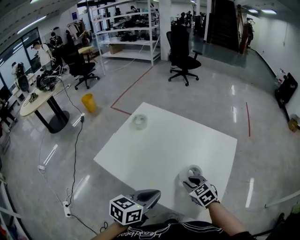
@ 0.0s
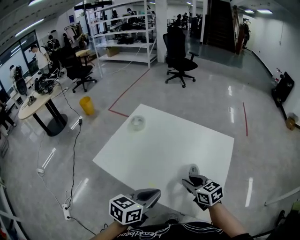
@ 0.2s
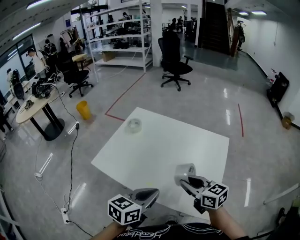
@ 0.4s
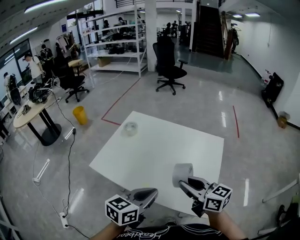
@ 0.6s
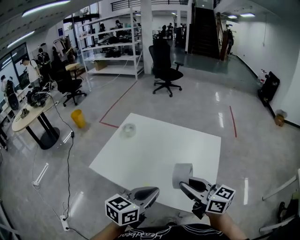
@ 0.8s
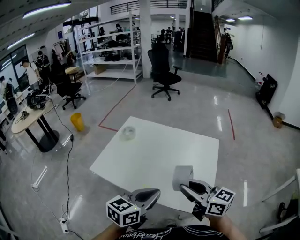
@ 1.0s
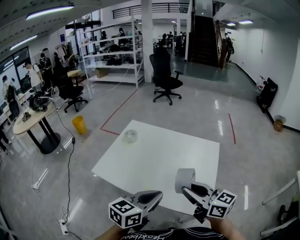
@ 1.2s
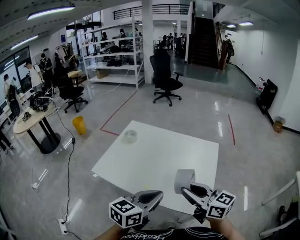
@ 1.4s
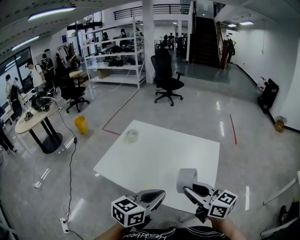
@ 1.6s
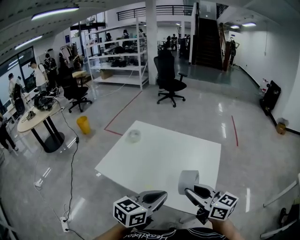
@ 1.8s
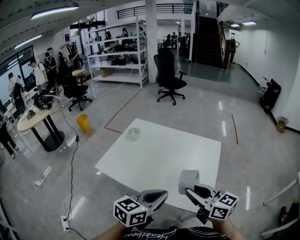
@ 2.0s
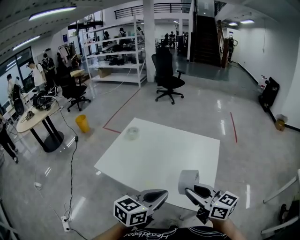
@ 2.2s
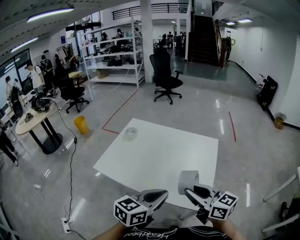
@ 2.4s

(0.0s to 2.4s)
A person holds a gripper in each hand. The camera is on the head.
0.0s - 1.2s: The left gripper travels upward by about 10 cm. Meanwhile the right gripper heads upward and backward, covering about 25 cm, and tilts its fingers approximately 40 degrees upward.
1.2s - 2.4s: The grippers move only a little.

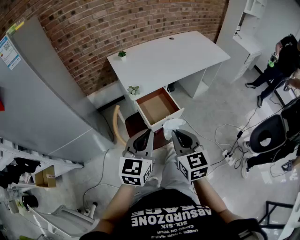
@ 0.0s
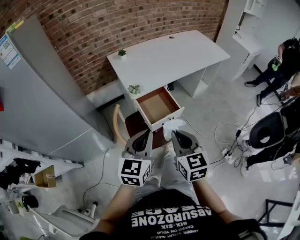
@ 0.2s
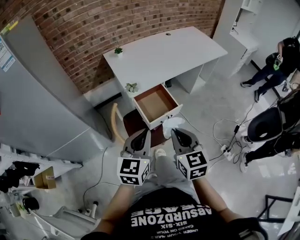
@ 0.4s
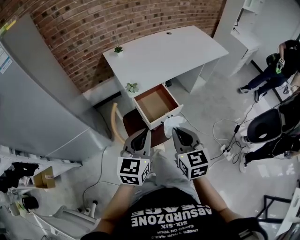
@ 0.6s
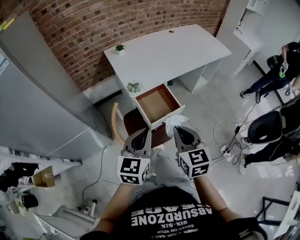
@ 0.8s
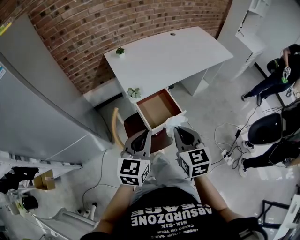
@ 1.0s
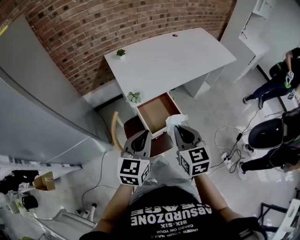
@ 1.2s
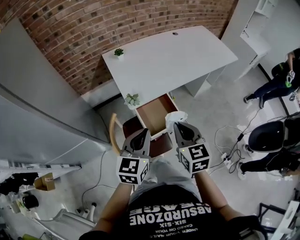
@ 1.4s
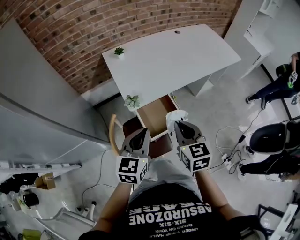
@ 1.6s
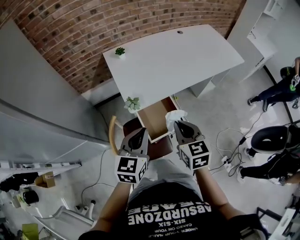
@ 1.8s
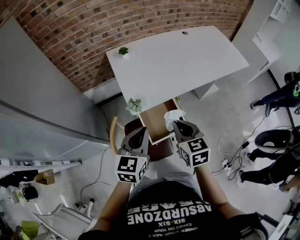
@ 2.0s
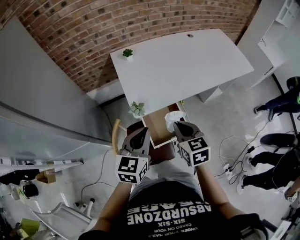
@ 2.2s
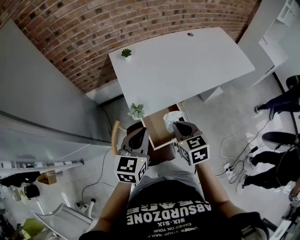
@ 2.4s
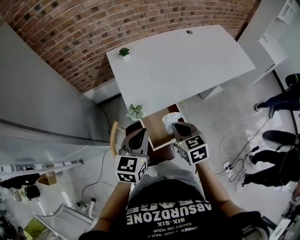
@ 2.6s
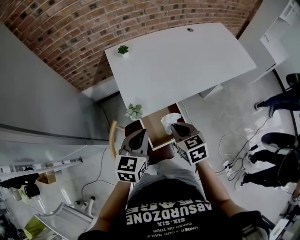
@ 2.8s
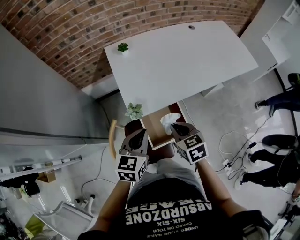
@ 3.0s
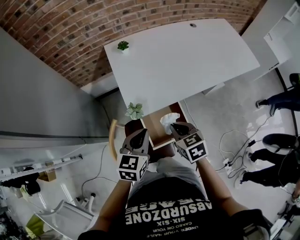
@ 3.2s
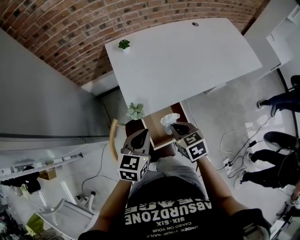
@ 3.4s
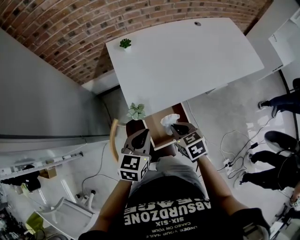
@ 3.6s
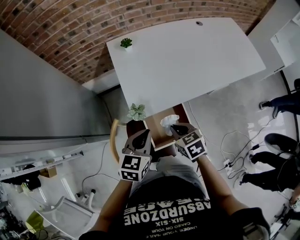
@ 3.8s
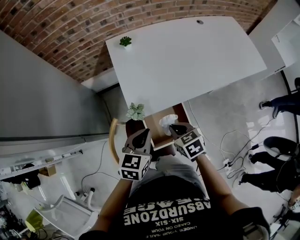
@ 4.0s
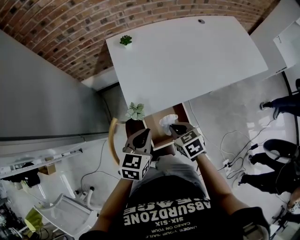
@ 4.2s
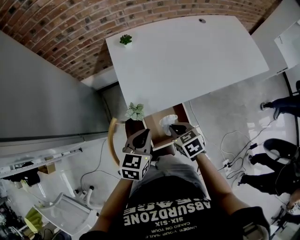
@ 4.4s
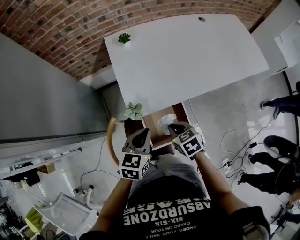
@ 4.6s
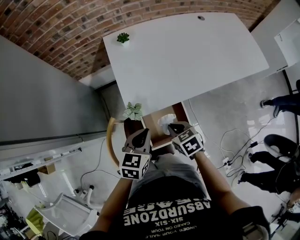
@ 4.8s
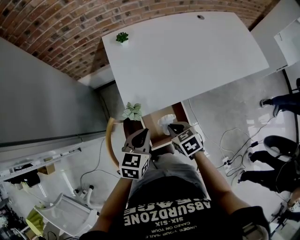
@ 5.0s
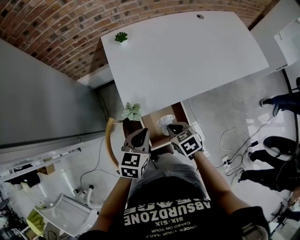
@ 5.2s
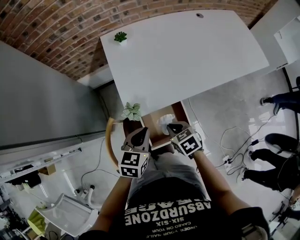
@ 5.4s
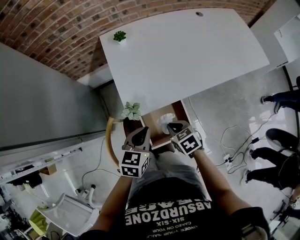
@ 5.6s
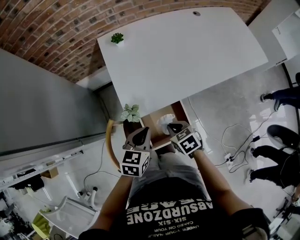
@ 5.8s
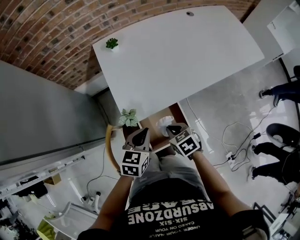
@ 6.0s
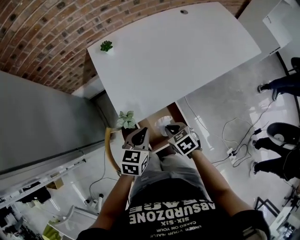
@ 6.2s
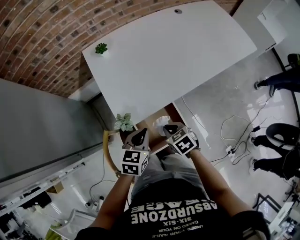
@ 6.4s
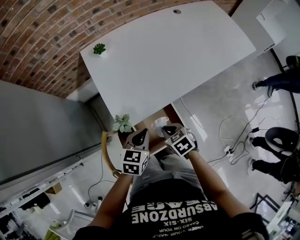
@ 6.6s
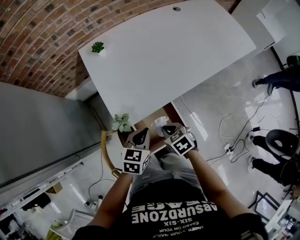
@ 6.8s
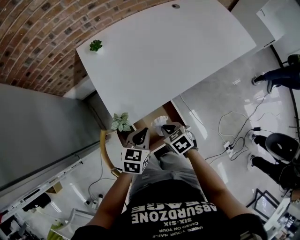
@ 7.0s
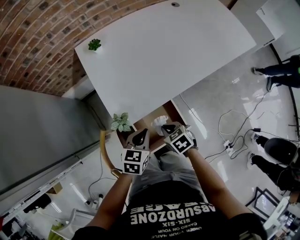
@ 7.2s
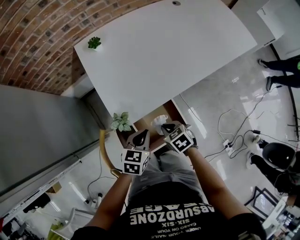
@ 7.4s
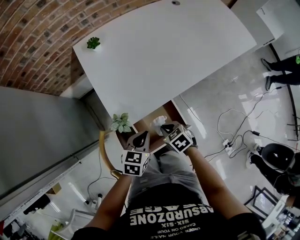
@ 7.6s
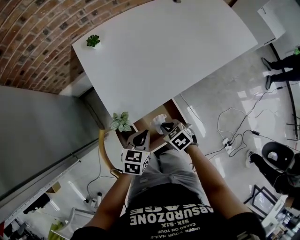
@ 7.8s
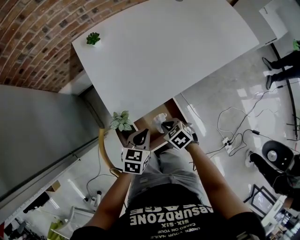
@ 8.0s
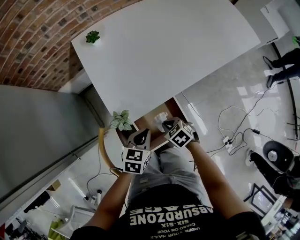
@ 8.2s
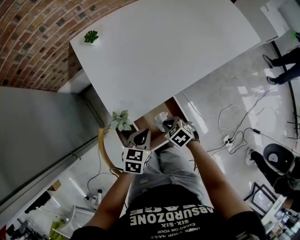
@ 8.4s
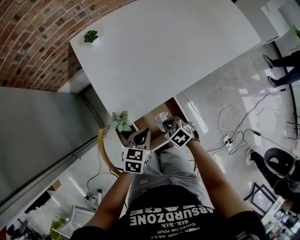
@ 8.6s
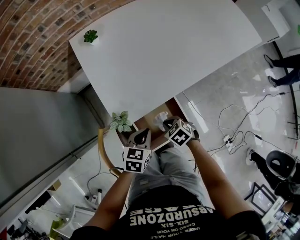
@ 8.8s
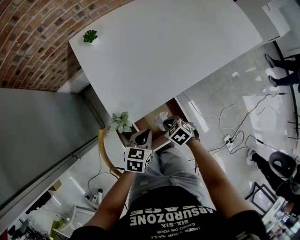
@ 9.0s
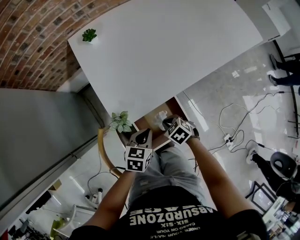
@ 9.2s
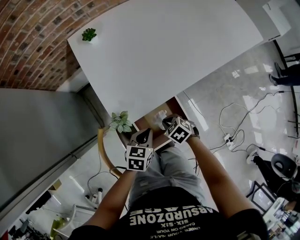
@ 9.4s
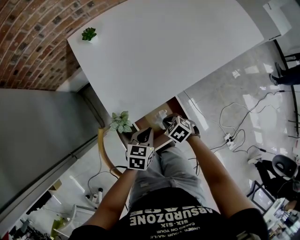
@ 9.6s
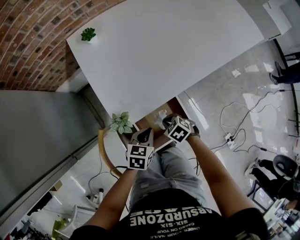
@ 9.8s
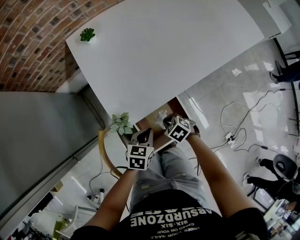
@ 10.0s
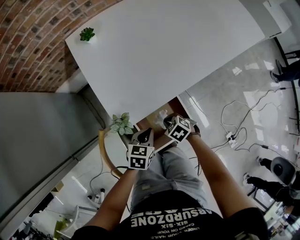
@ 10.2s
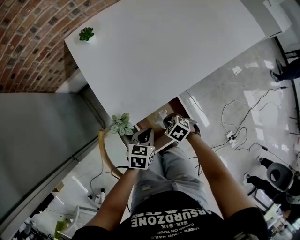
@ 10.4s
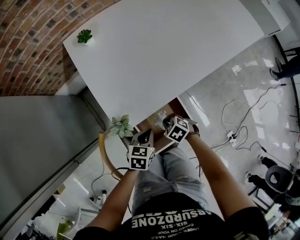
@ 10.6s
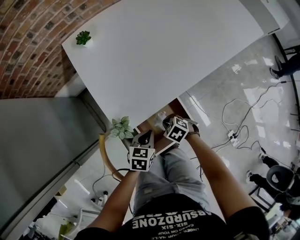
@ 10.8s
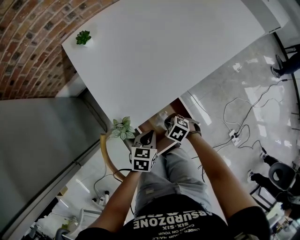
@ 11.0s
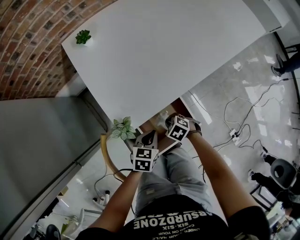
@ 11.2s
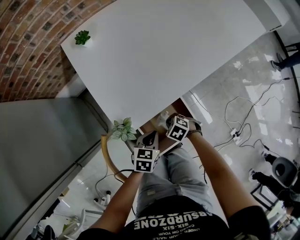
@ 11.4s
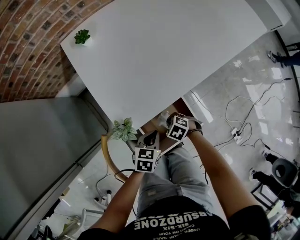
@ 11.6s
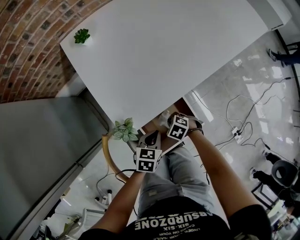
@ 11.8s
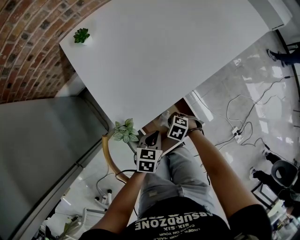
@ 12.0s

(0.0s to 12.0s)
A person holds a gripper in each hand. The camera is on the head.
0.0s - 1.6s: Both grippers move forward, roughly 20 cm.
1.6s - 3.0s: Both grippers travel together forward and downward, approximately 15 cm. The right gripper turns by roughly 20 degrees.
3.0s - 4.4s: The right gripper goes about 10 cm downward, while the left gripper goes about 5 cm downward.
4.4s - 6.0s: The left gripper changes place by about 5 cm.
6.0s - 7.6s: Both grippers move downward, roughly 5 cm.
7.6s - 9.0s: The right gripper moves downward, approximately 5 cm.
9.0s - 10.4s: The grippers stay close to where they were, moving slightly.
10.4s - 12.0s: The right gripper moves downward, about 5 cm.

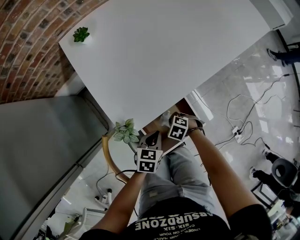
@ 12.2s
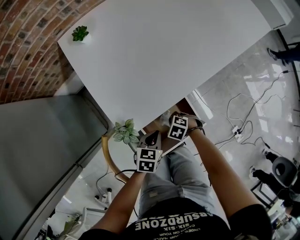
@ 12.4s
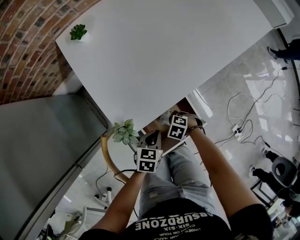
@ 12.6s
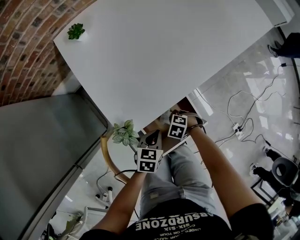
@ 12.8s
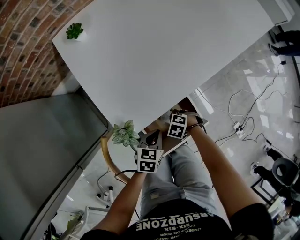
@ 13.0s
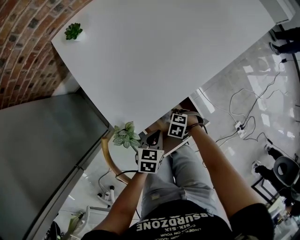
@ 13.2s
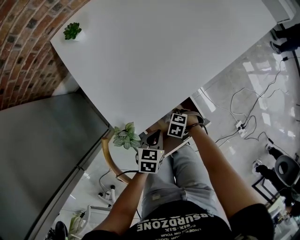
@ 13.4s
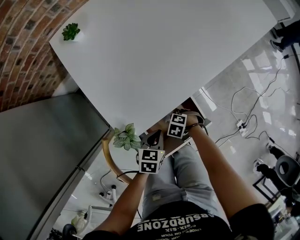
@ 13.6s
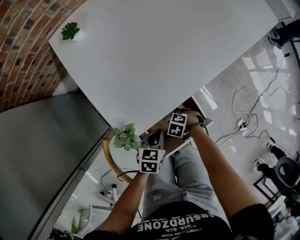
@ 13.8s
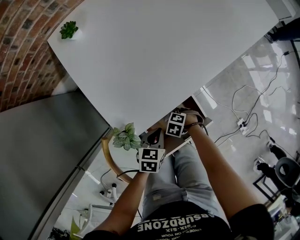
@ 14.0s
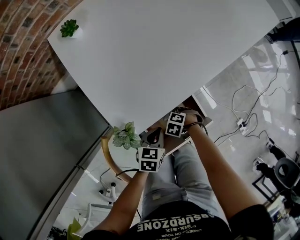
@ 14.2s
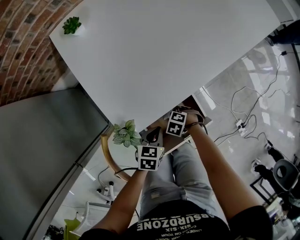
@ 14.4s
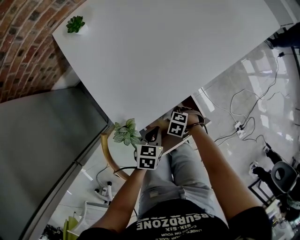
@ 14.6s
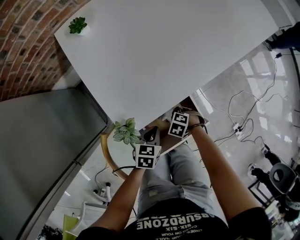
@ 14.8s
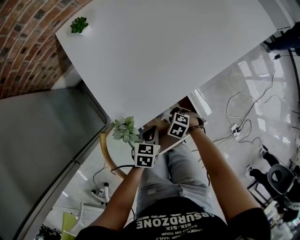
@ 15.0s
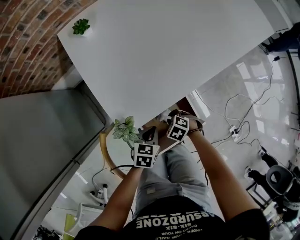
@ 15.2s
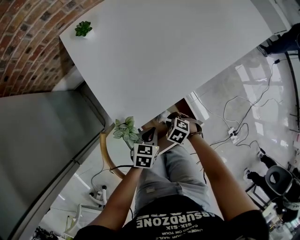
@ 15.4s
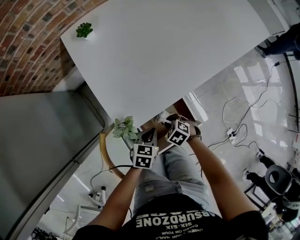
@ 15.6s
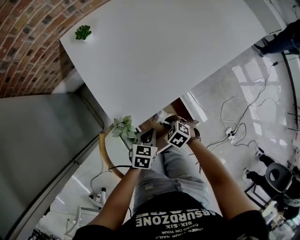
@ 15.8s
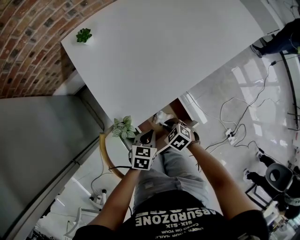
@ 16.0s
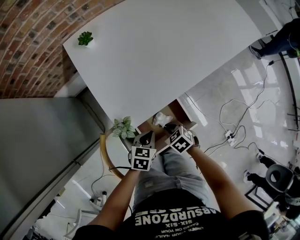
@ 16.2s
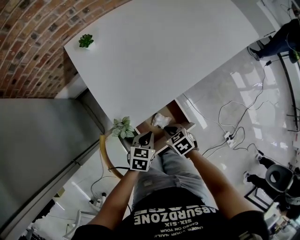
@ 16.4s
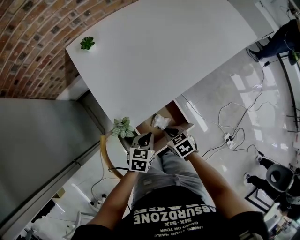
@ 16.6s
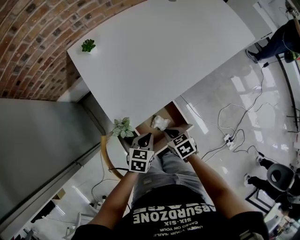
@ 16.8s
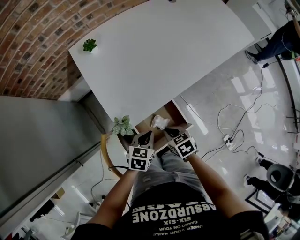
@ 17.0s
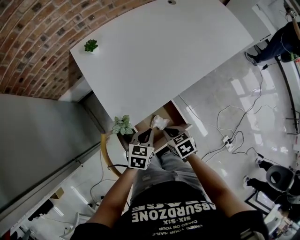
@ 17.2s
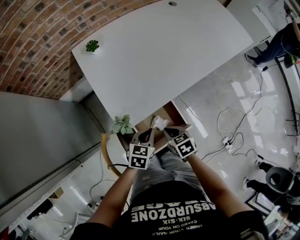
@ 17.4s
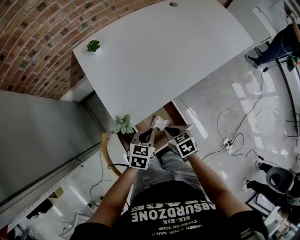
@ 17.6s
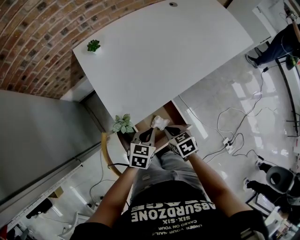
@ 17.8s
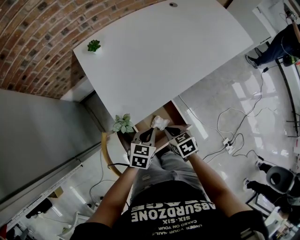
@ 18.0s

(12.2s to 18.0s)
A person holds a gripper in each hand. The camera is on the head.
12.2s - 13.6s: The right gripper heads downward, covering about 5 cm.
13.6s - 15.0s: The grippers make only small movements.
15.0s - 16.6s: The left gripper heads upward, covering some 10 cm. The right gripper is displaced upward by some 15 cm, and turns by about 40 degrees.
16.6s - 18.0s: The right gripper moves upward, roughly 5 cm, while the left gripper shifts by approximately 5 cm.

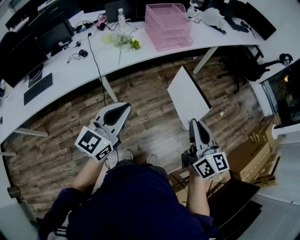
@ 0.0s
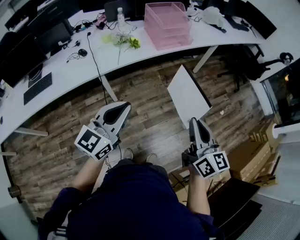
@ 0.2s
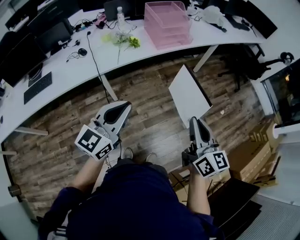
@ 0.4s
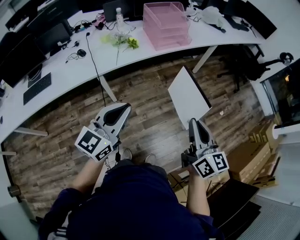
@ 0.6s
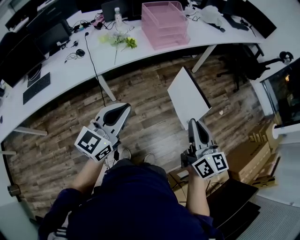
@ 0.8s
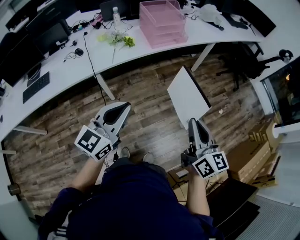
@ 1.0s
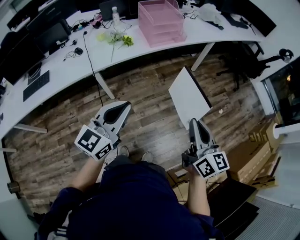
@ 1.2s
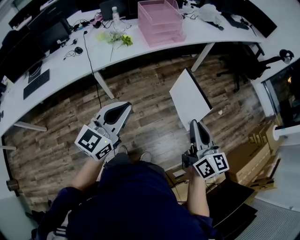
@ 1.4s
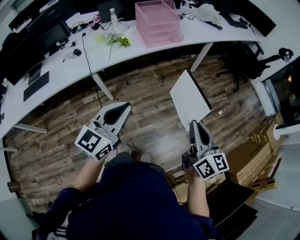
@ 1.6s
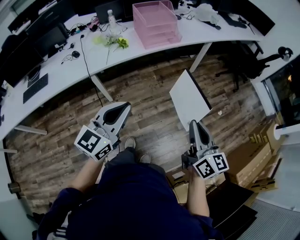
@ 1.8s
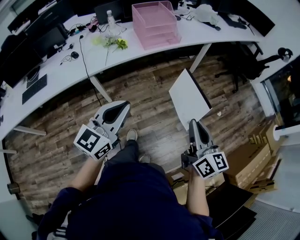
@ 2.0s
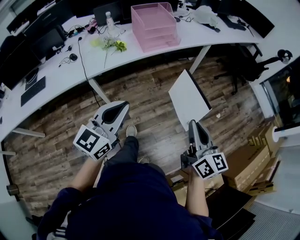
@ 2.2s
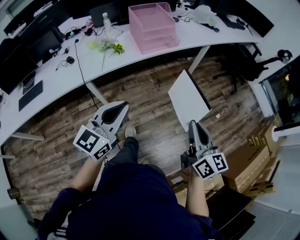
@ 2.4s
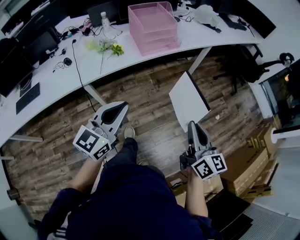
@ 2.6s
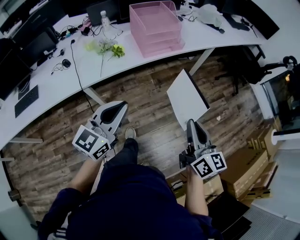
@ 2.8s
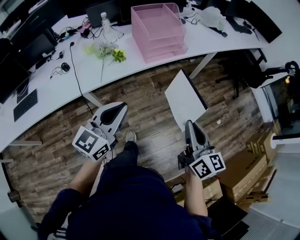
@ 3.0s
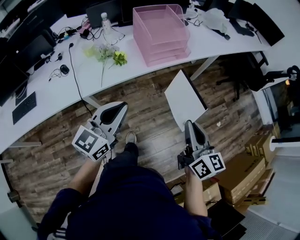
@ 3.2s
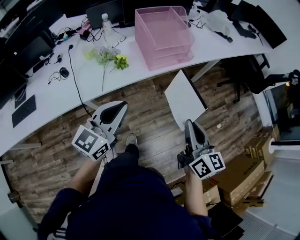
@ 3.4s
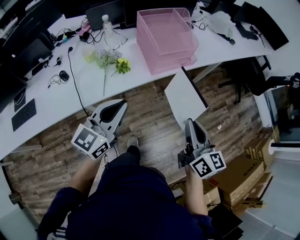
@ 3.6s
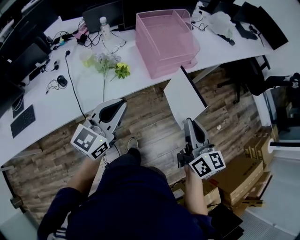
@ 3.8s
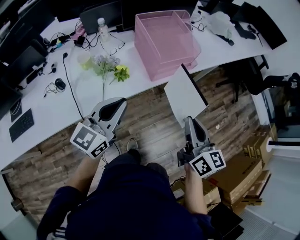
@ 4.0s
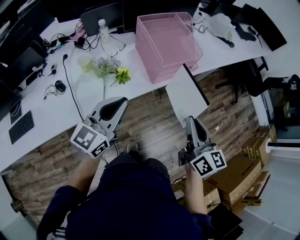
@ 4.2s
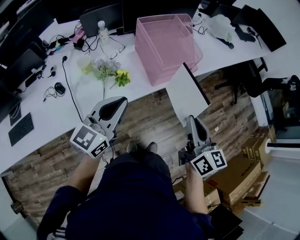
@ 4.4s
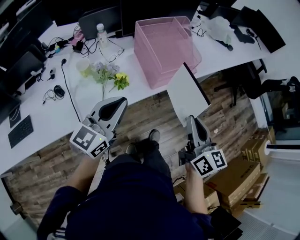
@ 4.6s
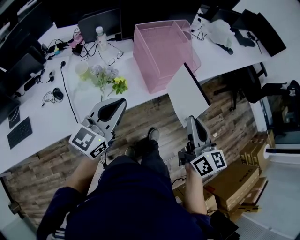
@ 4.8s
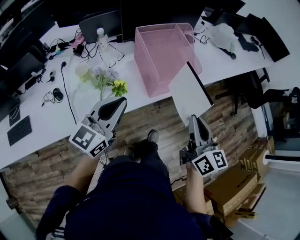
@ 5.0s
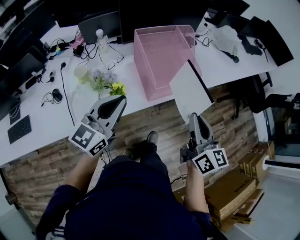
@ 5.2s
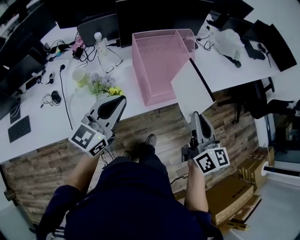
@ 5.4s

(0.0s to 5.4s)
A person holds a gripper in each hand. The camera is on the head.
0.0s - 1.4s: The grippers both shift to the right by some 10 cm.
1.4s - 2.8s: The grippers both shift forward by about 15 cm.
2.8s - 4.0s: The grippers both shift forward and to the left by some 25 cm.
4.0s - 5.4s: Both grippers travel together forward, roughly 15 cm.
